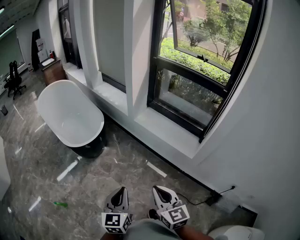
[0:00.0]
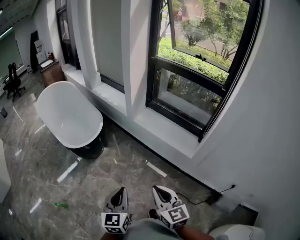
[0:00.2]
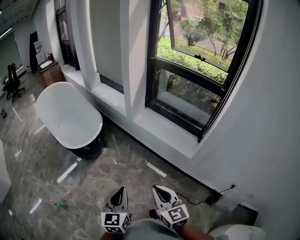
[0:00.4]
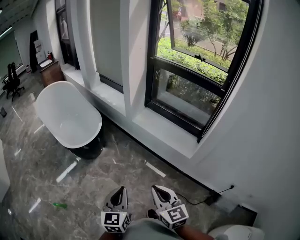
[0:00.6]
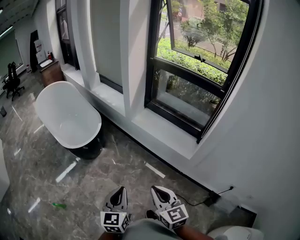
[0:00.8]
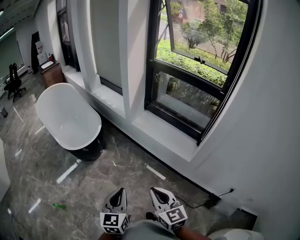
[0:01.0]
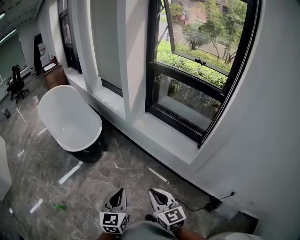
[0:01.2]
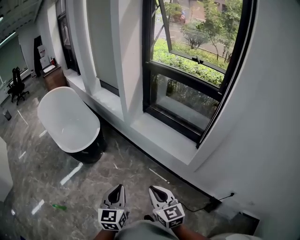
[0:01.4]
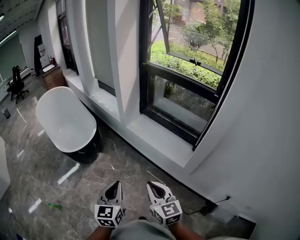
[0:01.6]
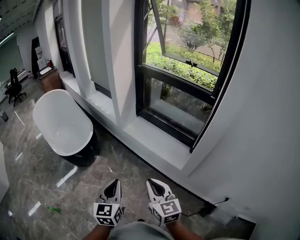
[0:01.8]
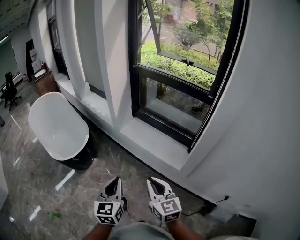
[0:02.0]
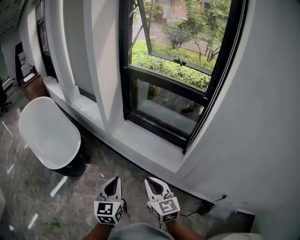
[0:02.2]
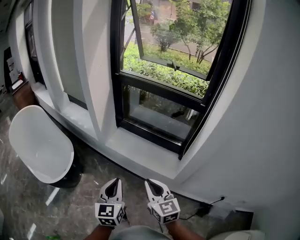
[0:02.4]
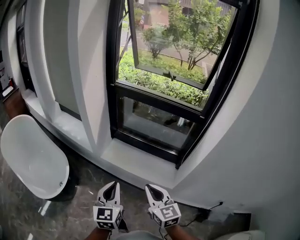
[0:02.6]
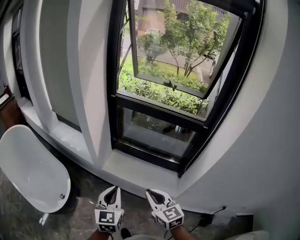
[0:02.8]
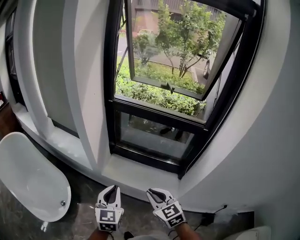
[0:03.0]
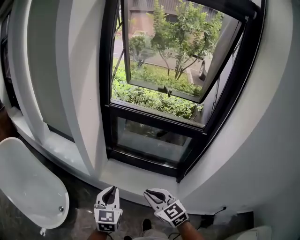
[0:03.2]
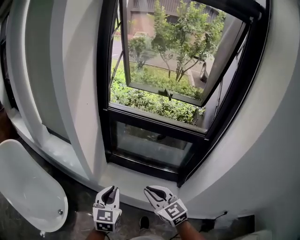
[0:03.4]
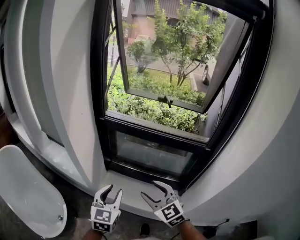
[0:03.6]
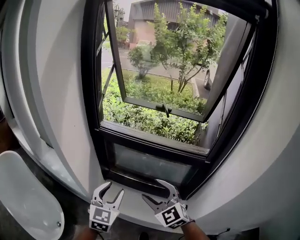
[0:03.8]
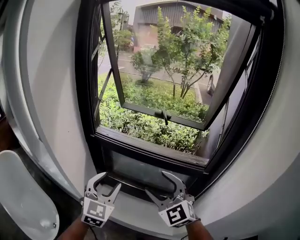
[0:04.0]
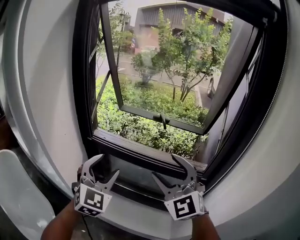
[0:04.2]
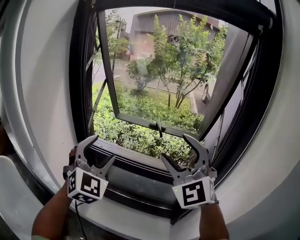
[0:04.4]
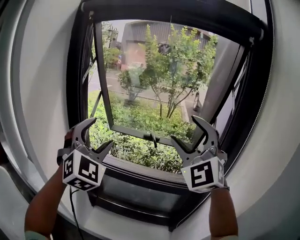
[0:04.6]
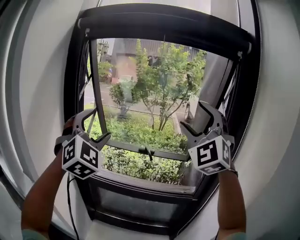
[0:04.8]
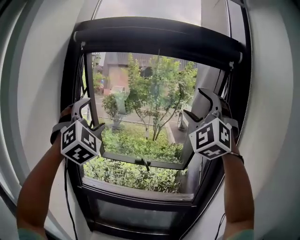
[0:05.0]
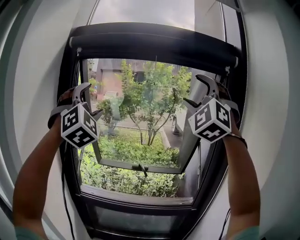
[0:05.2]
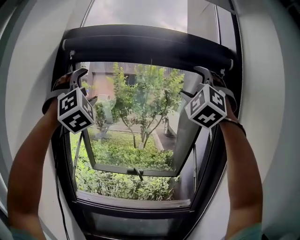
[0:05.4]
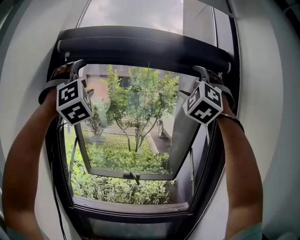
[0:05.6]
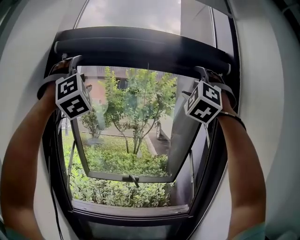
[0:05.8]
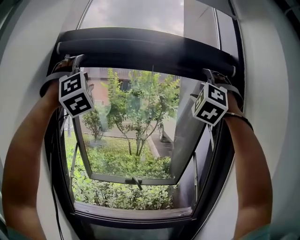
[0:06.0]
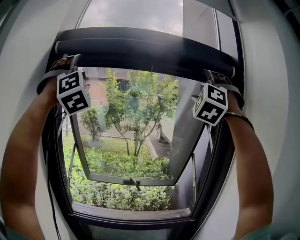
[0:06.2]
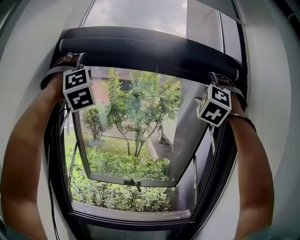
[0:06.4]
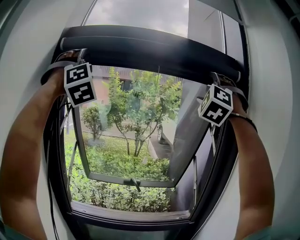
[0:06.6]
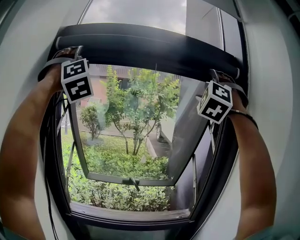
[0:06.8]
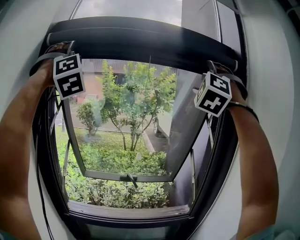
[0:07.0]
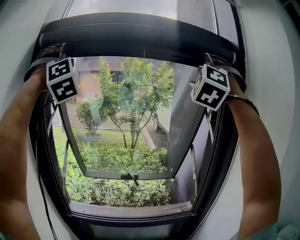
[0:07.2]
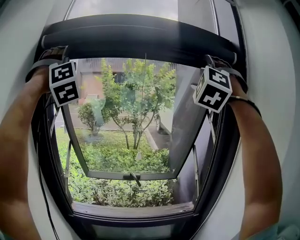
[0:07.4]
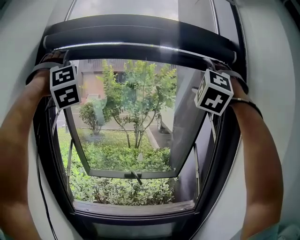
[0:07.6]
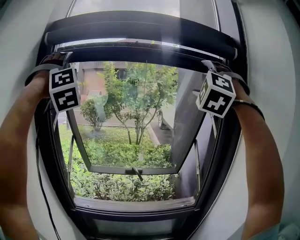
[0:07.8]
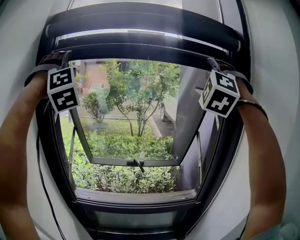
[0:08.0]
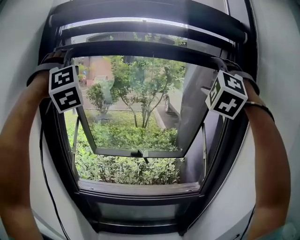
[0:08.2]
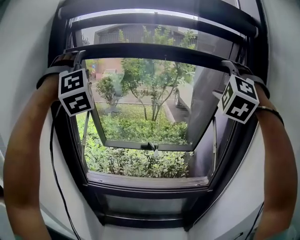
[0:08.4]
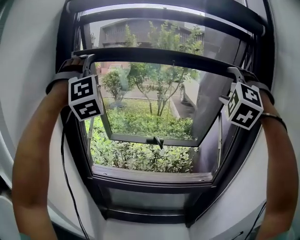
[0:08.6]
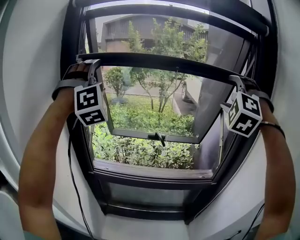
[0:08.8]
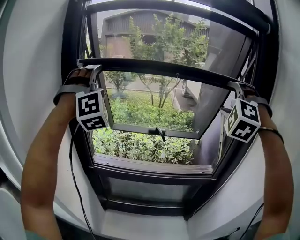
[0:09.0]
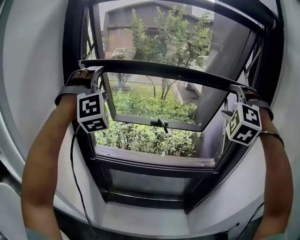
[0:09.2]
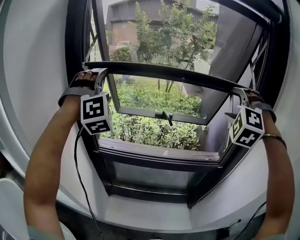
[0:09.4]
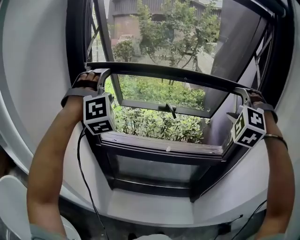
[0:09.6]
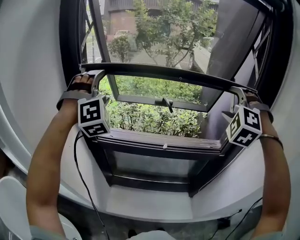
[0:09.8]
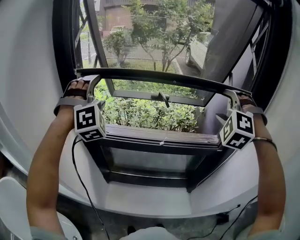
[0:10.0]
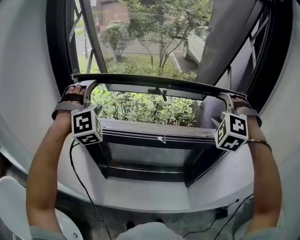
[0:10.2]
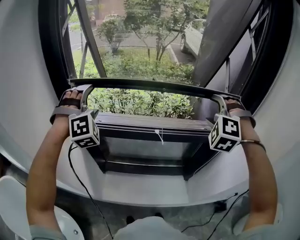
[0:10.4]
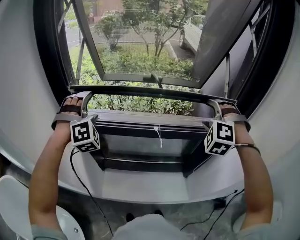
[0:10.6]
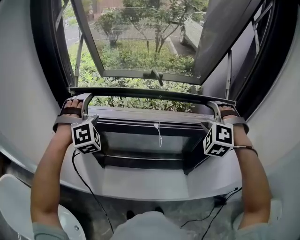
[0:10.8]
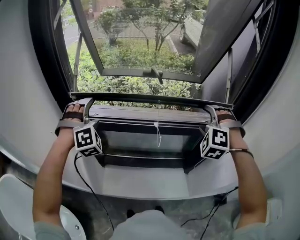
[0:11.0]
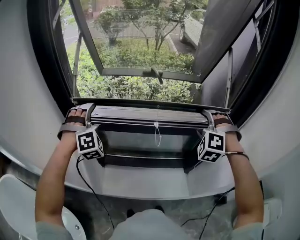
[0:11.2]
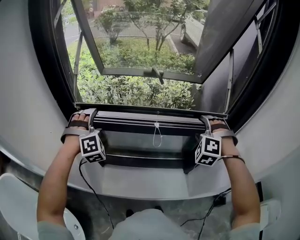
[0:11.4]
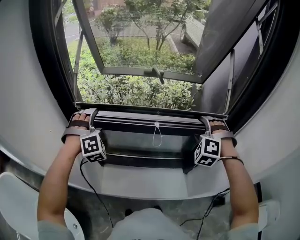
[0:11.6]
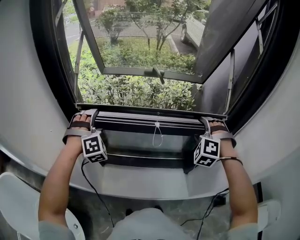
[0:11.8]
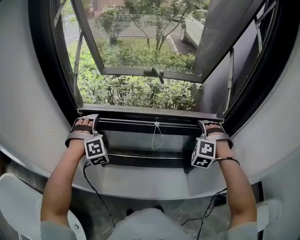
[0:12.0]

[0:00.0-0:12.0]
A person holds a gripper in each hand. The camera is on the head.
0.0 to 1.6 s: The two grippers go about 15 cm to the right and forward.
1.6 to 3.0 s: The pair of grippers is taken forward, roughly 40 cm. The right gripper turns by approximately 20 degrees, while the left gripper changes its angle by some 20 degrees.
3.0 to 4.4 s: Both grippers are carried forward and to the right, about 40 cm. The two grippers go some 30 cm upward. The left gripper rotates around the line of its fingers by about 40 degrees, clockwise from behind, and opens up. The right gripper rolls counterclockwise, seen from behind, by approximately 40 degrees, and opens up.
4.4 to 6.0 s: Both grippers travel together upward, some 40 cm. The left gripper rotates roughly 40 degrees; the right gripper turns by about 60 degrees.
6.0 to 7.6 s: The left gripper moves about 5 cm.
7.6 to 9.0 s: Both grippers move downward, about 25 cm.
9.0 to 10.4 s: The grippers both shift downward by roughly 25 cm. The left gripper turns by roughly 20 degrees.
10.4 to 12.0 s: The two grippers go some 20 cm downward.

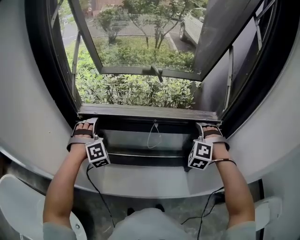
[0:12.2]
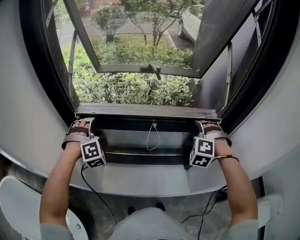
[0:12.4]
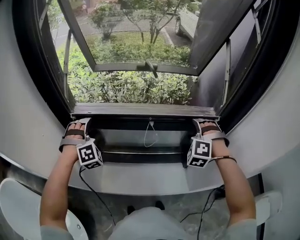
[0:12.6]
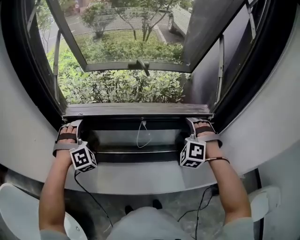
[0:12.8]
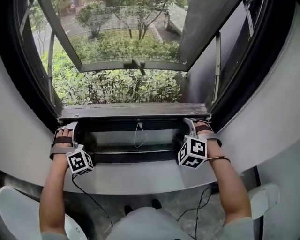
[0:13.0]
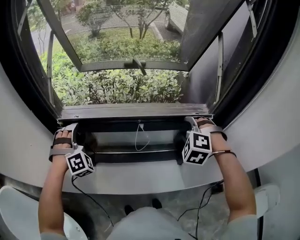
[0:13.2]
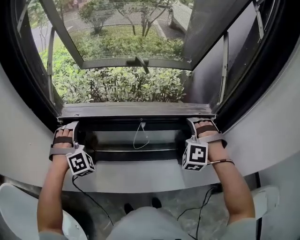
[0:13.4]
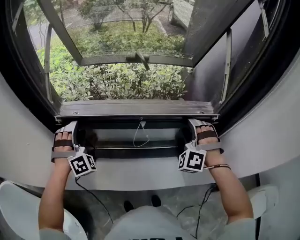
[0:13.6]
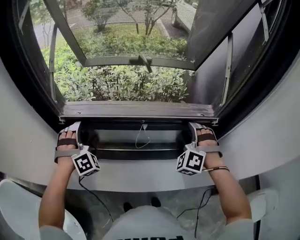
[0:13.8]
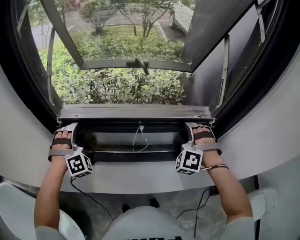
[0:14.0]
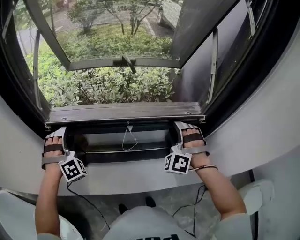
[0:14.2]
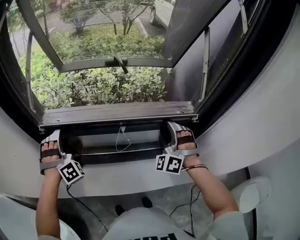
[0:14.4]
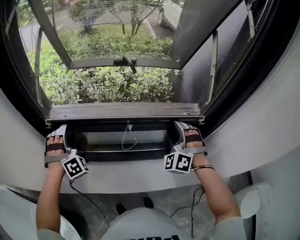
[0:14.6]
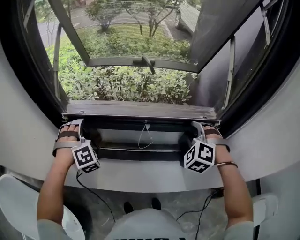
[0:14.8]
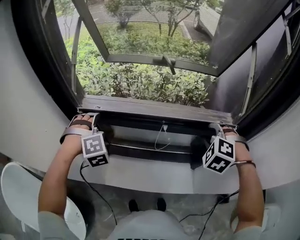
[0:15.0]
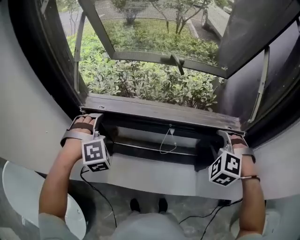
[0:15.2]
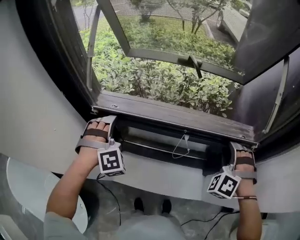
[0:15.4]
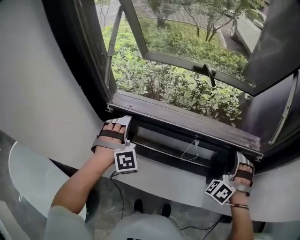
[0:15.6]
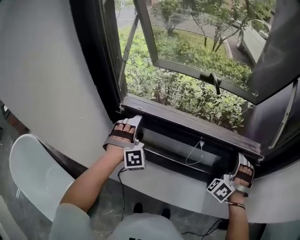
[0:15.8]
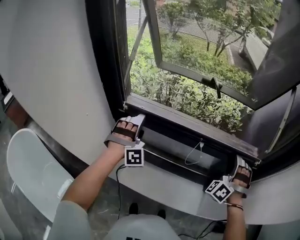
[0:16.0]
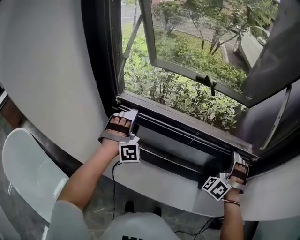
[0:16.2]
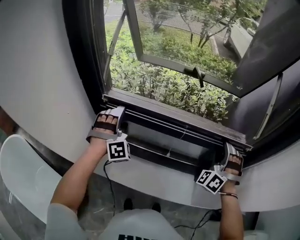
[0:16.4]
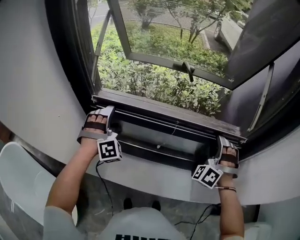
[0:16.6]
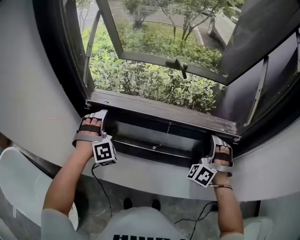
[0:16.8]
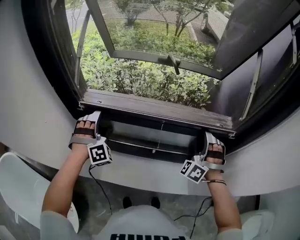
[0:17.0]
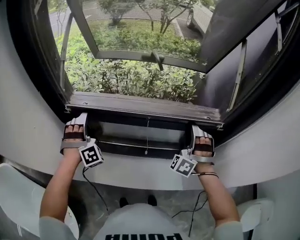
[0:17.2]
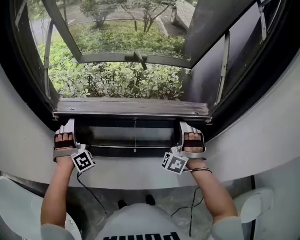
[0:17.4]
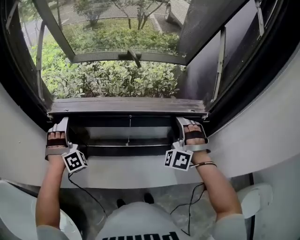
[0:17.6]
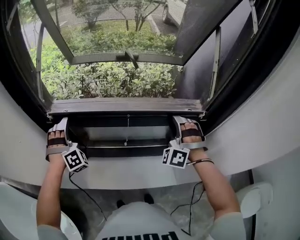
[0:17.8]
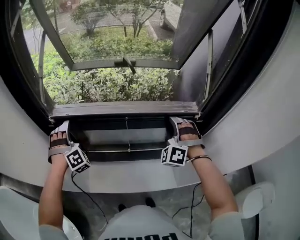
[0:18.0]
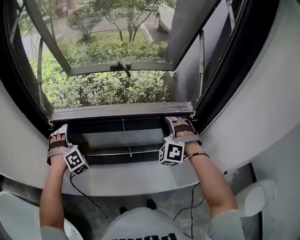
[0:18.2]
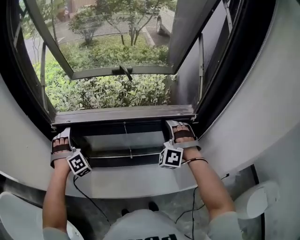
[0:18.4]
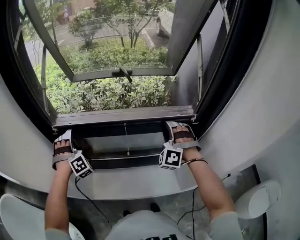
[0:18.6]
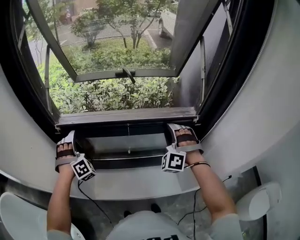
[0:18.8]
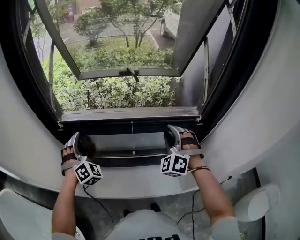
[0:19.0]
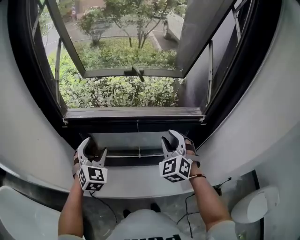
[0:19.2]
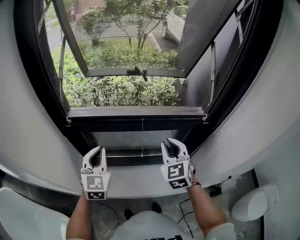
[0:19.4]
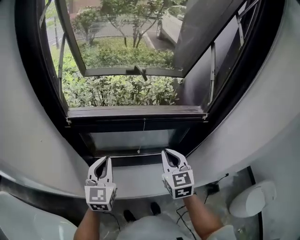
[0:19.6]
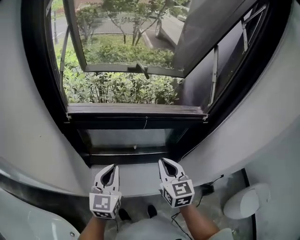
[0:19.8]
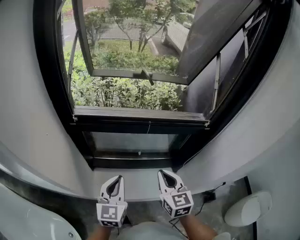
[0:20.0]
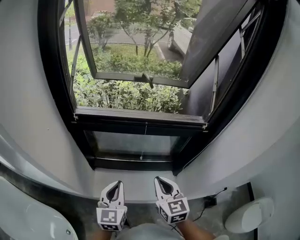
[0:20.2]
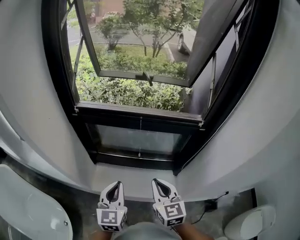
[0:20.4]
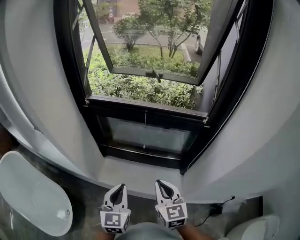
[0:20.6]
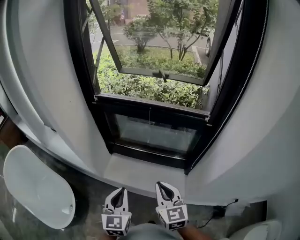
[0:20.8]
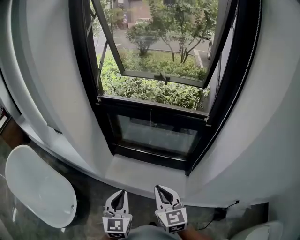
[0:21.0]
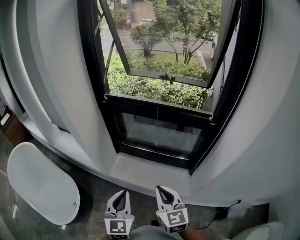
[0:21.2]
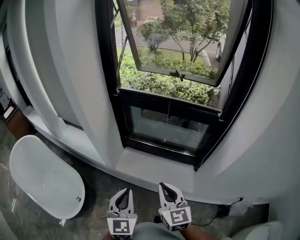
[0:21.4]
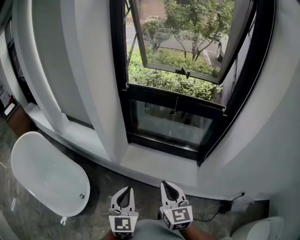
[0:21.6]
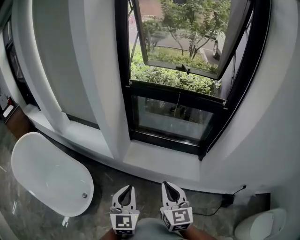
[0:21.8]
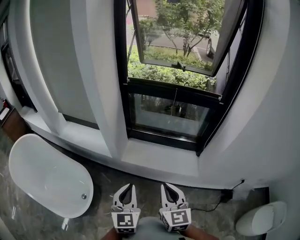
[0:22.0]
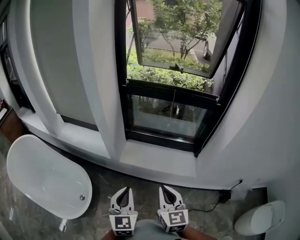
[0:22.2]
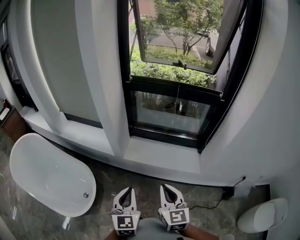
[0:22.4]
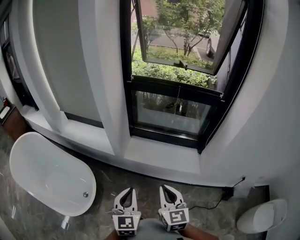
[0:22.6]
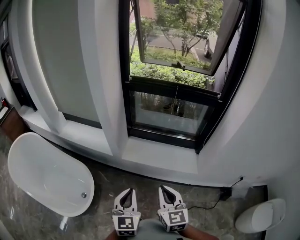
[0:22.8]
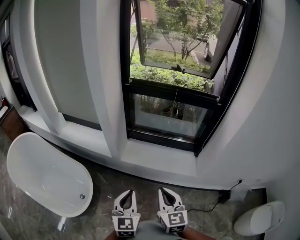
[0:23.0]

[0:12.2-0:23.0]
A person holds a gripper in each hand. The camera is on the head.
12.2 to 13.8 s: The right gripper closes its fingers.
15.2 to 16.8 s: The right gripper points its fingers some 30 degrees further upward.
16.8 to 18.4 s: There are only small adjustments of the grippers.
18.4 to 20.0 s: The right gripper goes roughly 25 cm backward and to the left, rotates around the line of its fingers by about 80 degrees, clockwise from behind, and closes, while the left gripper shifts approximately 25 cm backward and to the right, twists roughly 80 degrees counterclockwise, seen from behind, and closes up.
20.0 to 21.4 s: The right gripper changes place by approximately 25 cm, and rotates approximately 20 degrees. The left gripper changes place by approximately 30 cm, and changes its angle by roughly 30 degrees.
21.4 to 23.0 s: The left gripper shifts approximately 20 cm backward, to the left and downward; the right gripper is displaced backward and to the left by approximately 20 cm.

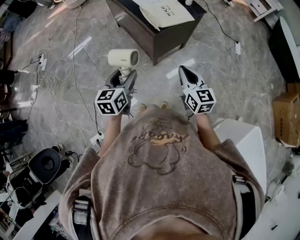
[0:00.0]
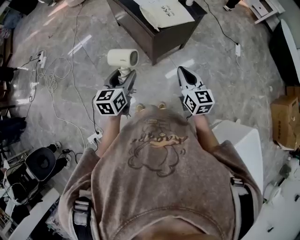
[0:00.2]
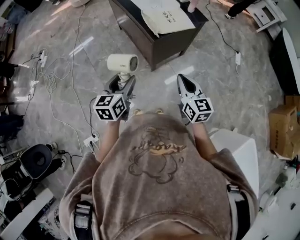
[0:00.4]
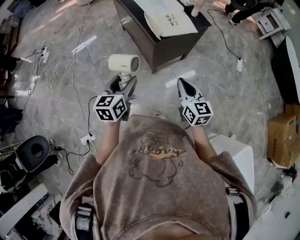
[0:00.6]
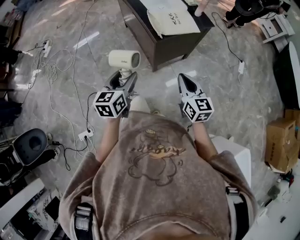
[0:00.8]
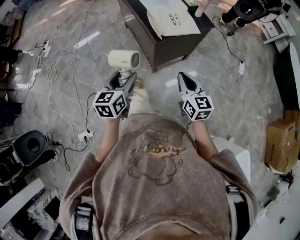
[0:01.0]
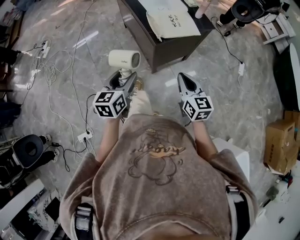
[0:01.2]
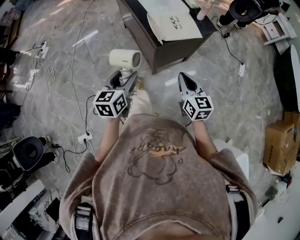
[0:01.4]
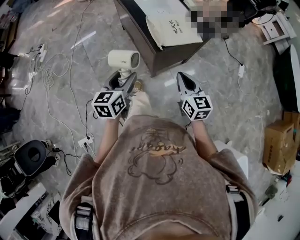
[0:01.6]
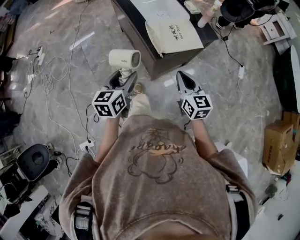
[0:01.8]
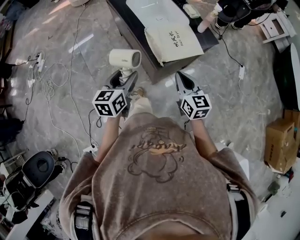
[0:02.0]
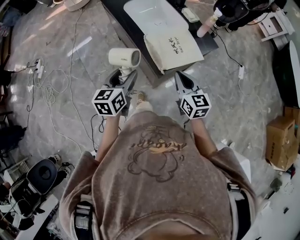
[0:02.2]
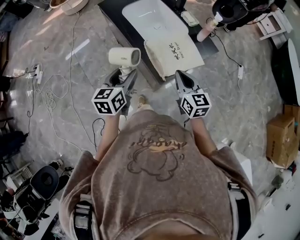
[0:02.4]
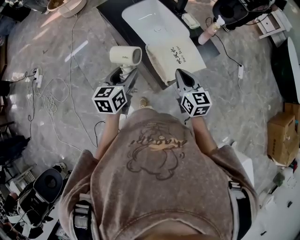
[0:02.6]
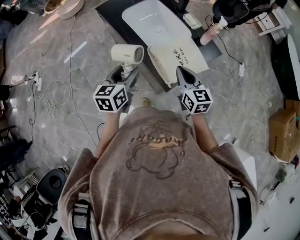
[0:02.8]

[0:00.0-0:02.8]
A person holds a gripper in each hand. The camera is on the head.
0.0 to 1.4 s: The two grippers go some 10 cm forward.
1.4 to 2.8 s: The two grippers go some 30 cm forward.
